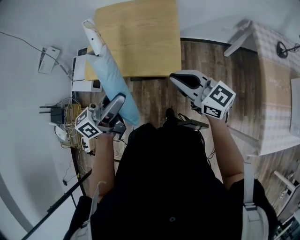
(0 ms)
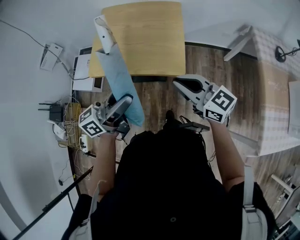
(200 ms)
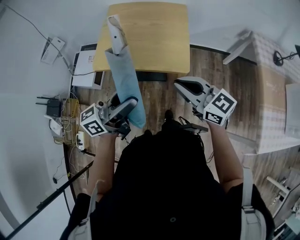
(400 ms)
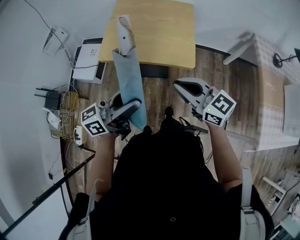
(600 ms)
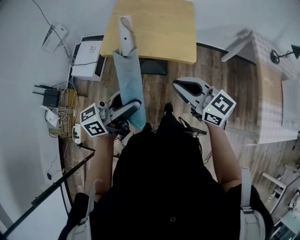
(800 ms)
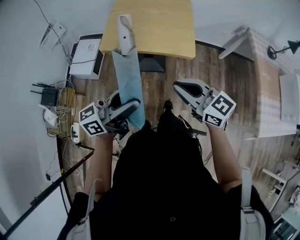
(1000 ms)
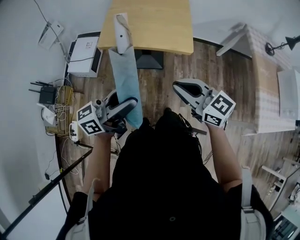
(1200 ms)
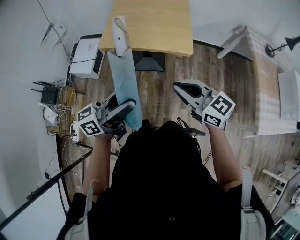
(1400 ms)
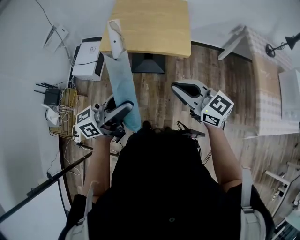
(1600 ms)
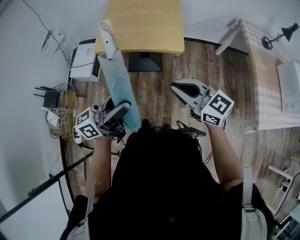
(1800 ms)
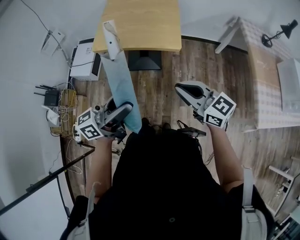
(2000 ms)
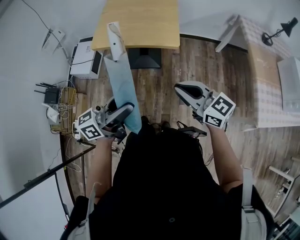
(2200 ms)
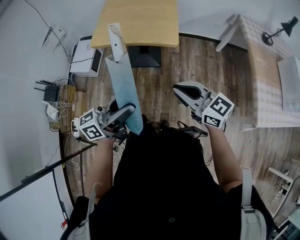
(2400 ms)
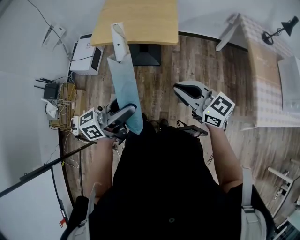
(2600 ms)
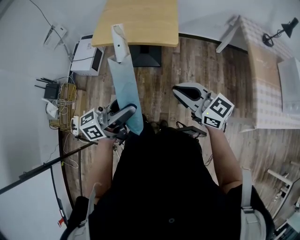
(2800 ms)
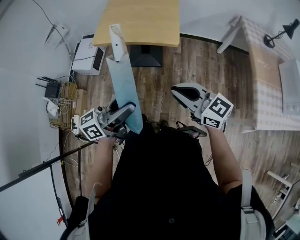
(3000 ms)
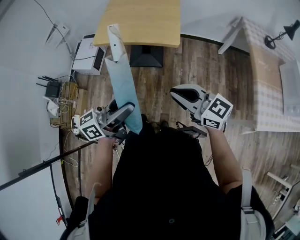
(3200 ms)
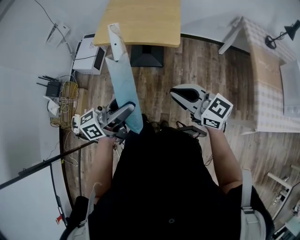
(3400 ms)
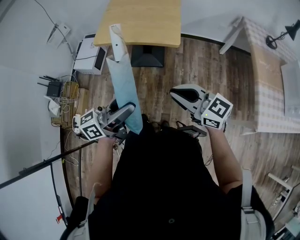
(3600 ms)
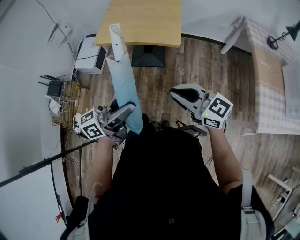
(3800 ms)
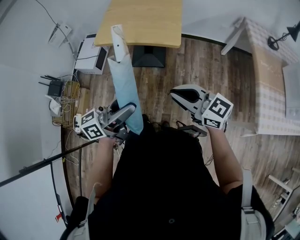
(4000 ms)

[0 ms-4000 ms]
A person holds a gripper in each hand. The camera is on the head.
0 ms to 1400 ms: Both grippers move backward and to the left, some 25 cm.
1400 ms to 2600 ms: Both grippers travel together to the right and backward, about 15 cm.
2600 ms to 4000 ms: The grippers make only small movements.

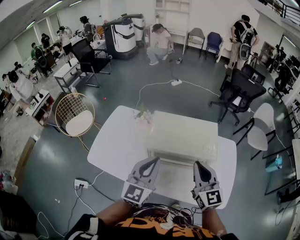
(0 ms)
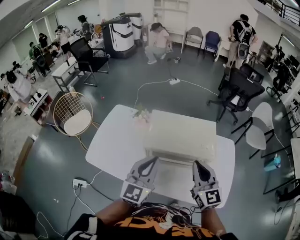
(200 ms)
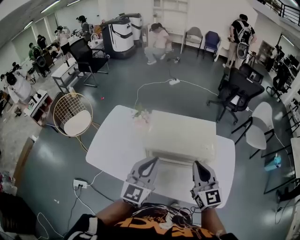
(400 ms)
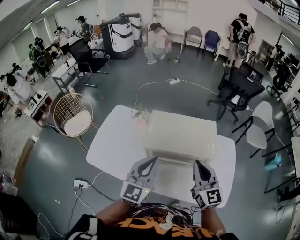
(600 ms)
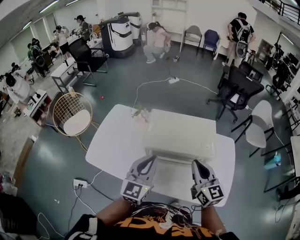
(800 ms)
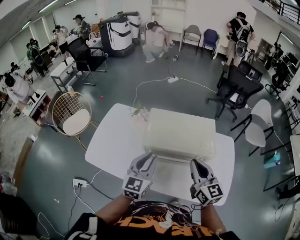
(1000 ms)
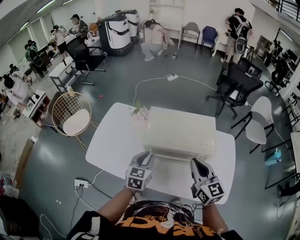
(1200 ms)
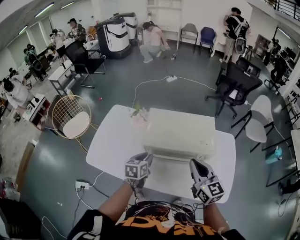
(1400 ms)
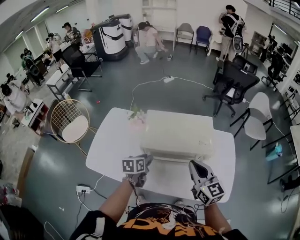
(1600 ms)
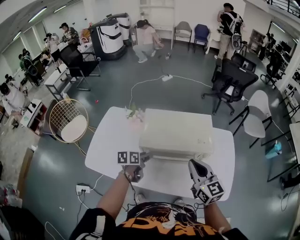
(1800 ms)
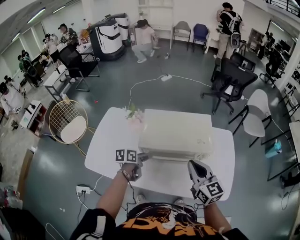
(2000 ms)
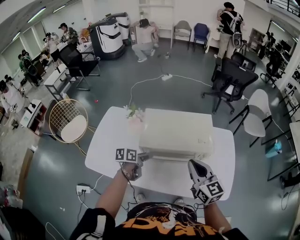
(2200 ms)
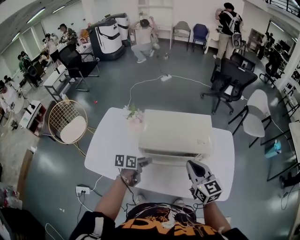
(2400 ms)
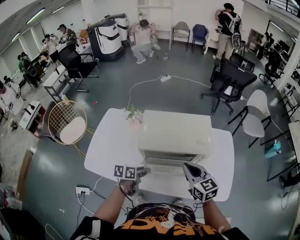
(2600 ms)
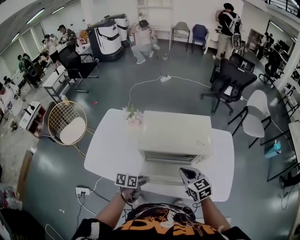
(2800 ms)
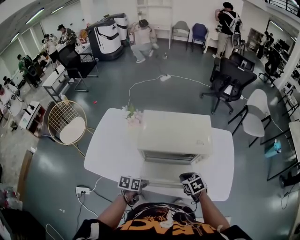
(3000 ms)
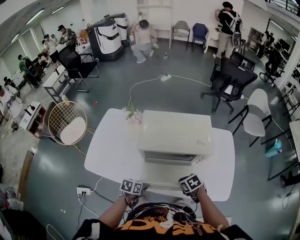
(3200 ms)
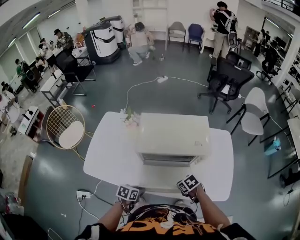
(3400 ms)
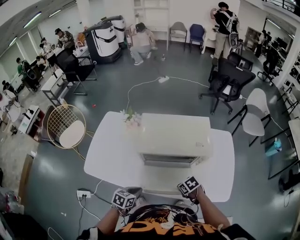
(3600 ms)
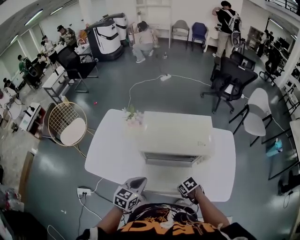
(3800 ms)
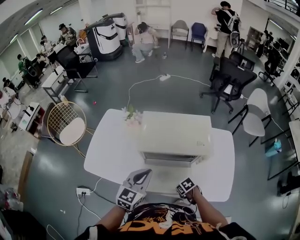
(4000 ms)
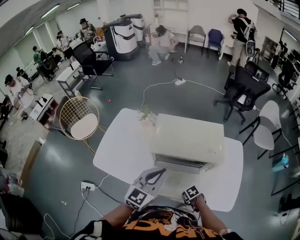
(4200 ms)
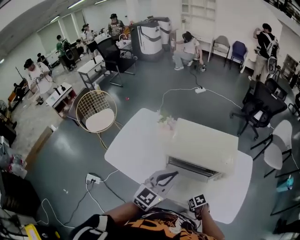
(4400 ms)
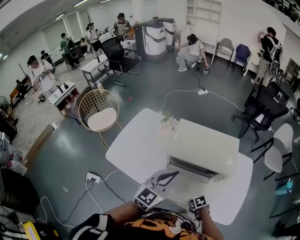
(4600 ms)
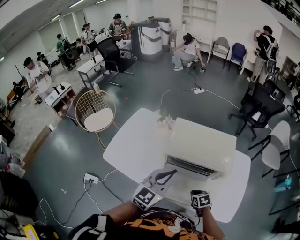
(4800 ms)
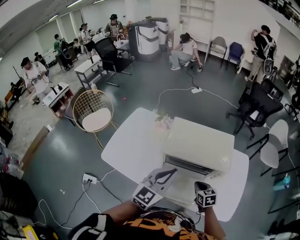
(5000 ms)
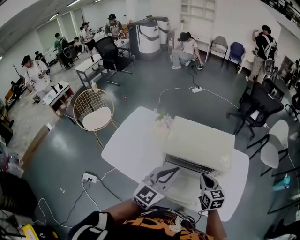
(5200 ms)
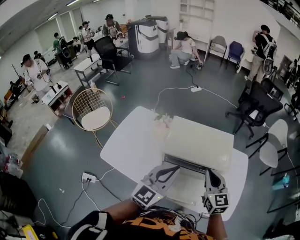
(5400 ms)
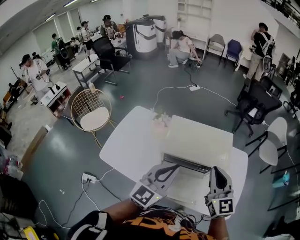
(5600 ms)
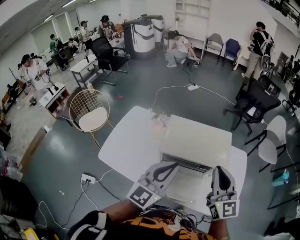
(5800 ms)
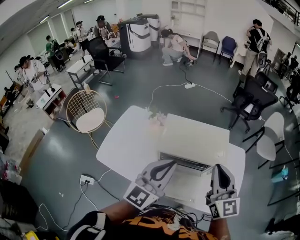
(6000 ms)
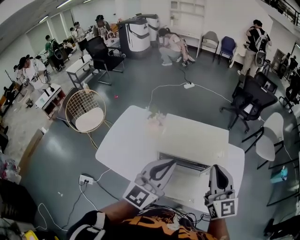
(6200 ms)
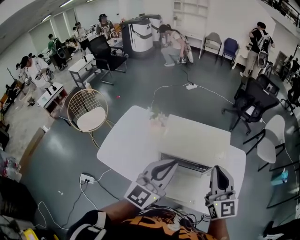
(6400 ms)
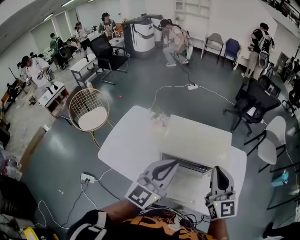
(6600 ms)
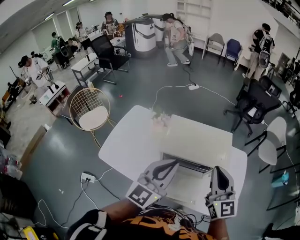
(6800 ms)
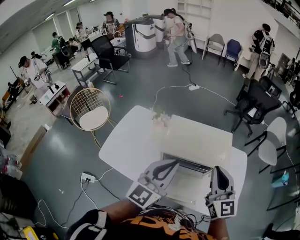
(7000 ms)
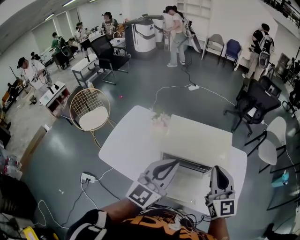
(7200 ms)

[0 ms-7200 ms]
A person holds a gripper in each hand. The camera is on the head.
0 ms to 1400 ms: The left gripper goes some 20 cm downward, points its fingers approximately 40 degrees further downward, and opens.
1400 ms to 2800 ms: The left gripper is displaced downward and backward by some 15 cm, swivels some 30 degrees, and opens, then closes once more. Meanwhile the right gripper shifts some 10 cm downward, and changes its angle by about 20 degrees.
2800 ms to 4400 ms: The left gripper shifts some 25 cm upward, tips its fingers upward by about 30 degrees, and closes. Meanwhile the right gripper moves downward, about 25 cm, and tilts its fingers some 40 degrees downward.
4400 ms to 5800 ms: The right gripper shifts roughly 50 cm upward, and angles its fingers upward, by about 70 degrees; the left gripper shifts roughly 10 cm upward.
5800 ms to 7200 ms: The grippers move only a little.

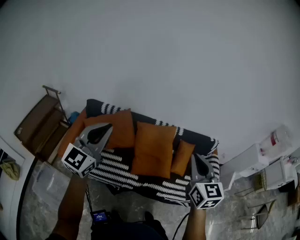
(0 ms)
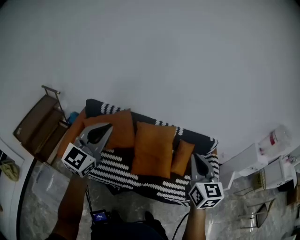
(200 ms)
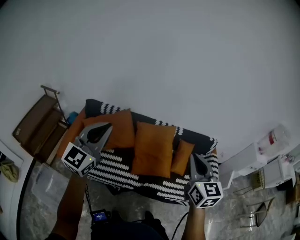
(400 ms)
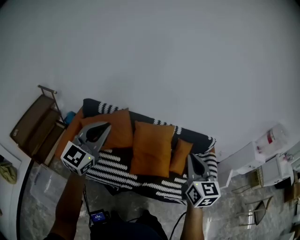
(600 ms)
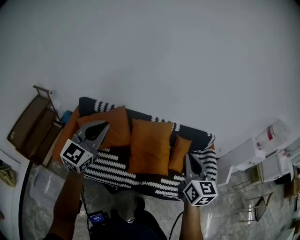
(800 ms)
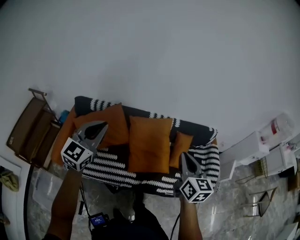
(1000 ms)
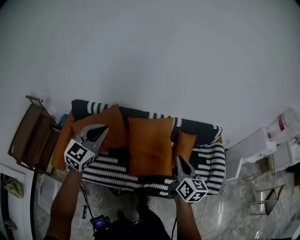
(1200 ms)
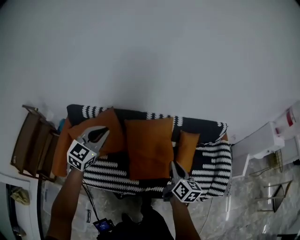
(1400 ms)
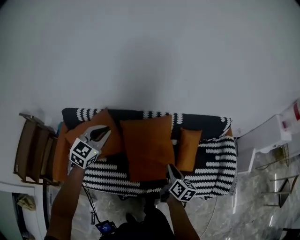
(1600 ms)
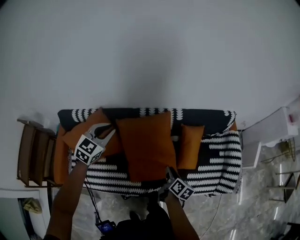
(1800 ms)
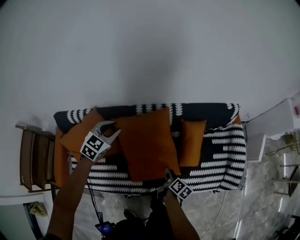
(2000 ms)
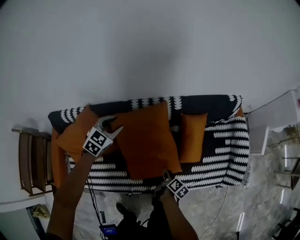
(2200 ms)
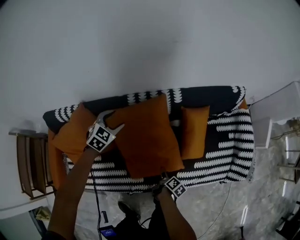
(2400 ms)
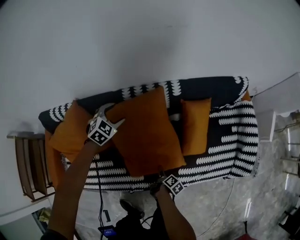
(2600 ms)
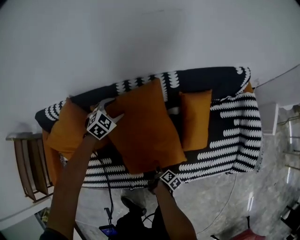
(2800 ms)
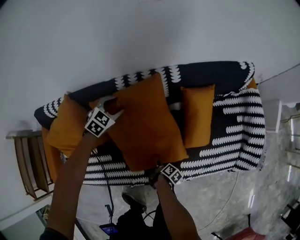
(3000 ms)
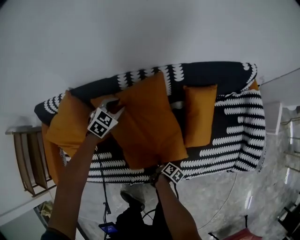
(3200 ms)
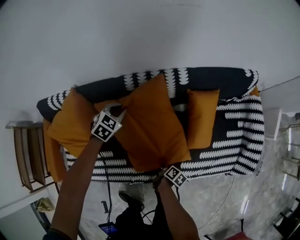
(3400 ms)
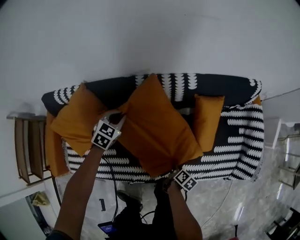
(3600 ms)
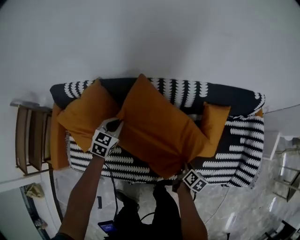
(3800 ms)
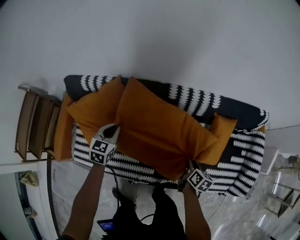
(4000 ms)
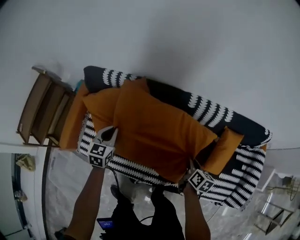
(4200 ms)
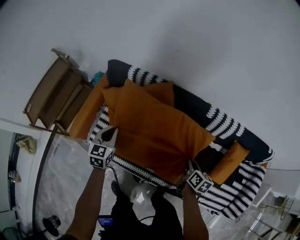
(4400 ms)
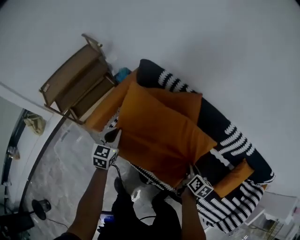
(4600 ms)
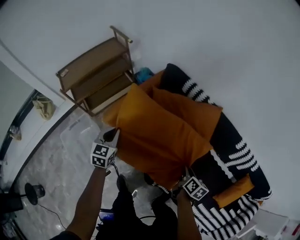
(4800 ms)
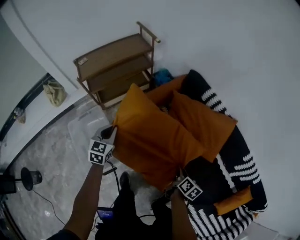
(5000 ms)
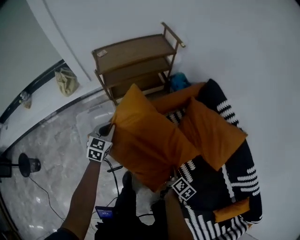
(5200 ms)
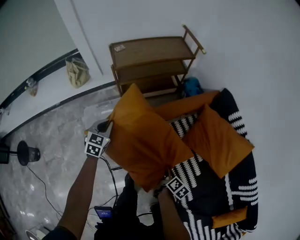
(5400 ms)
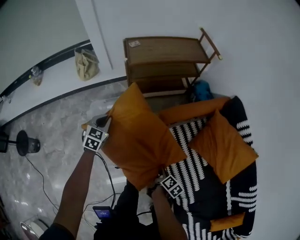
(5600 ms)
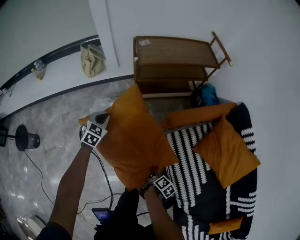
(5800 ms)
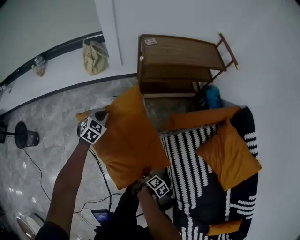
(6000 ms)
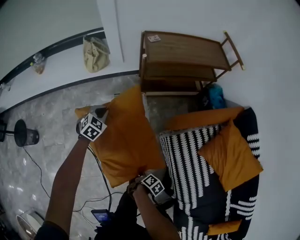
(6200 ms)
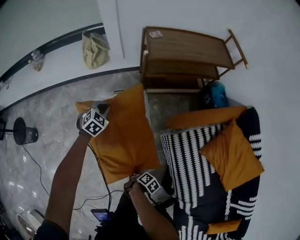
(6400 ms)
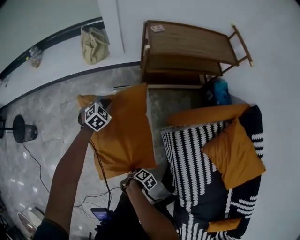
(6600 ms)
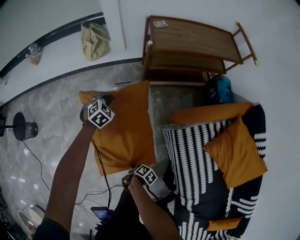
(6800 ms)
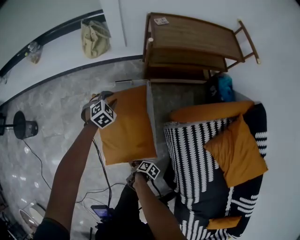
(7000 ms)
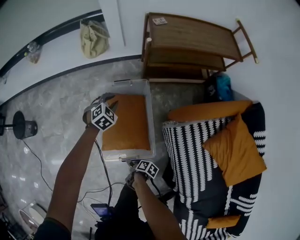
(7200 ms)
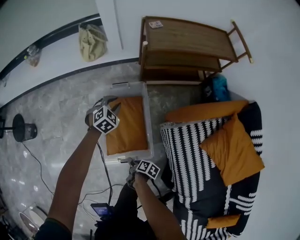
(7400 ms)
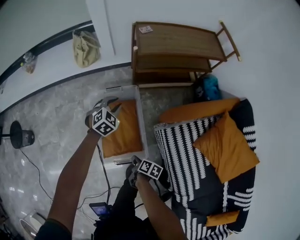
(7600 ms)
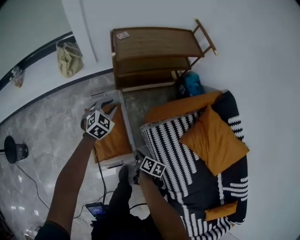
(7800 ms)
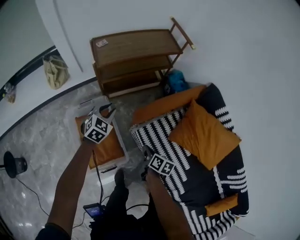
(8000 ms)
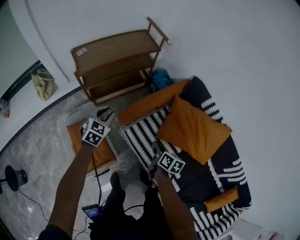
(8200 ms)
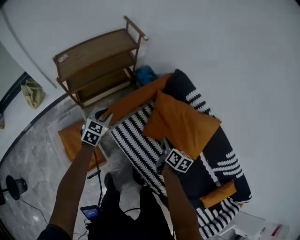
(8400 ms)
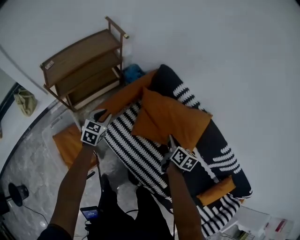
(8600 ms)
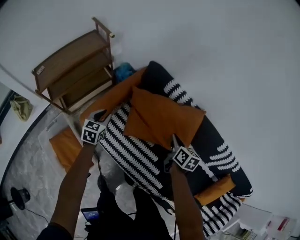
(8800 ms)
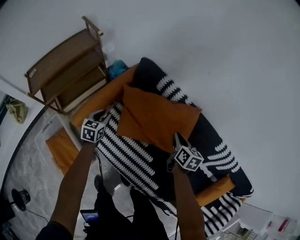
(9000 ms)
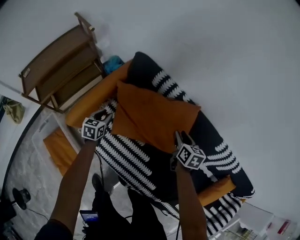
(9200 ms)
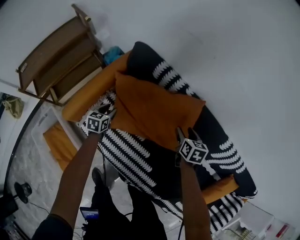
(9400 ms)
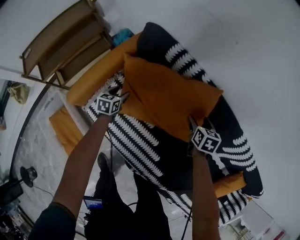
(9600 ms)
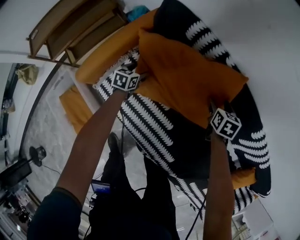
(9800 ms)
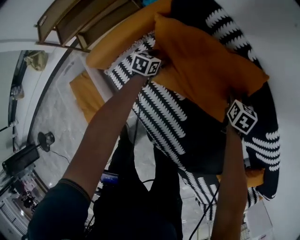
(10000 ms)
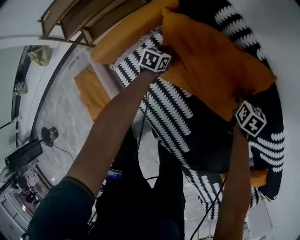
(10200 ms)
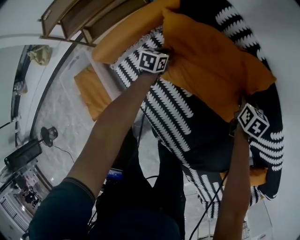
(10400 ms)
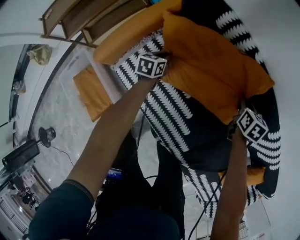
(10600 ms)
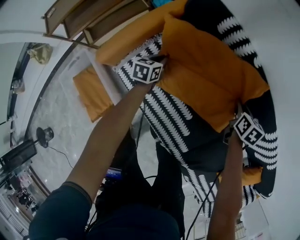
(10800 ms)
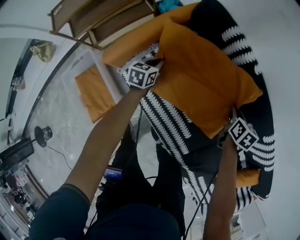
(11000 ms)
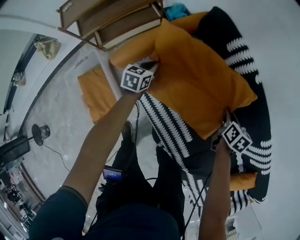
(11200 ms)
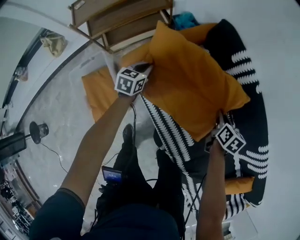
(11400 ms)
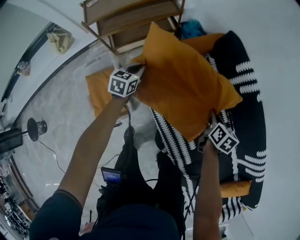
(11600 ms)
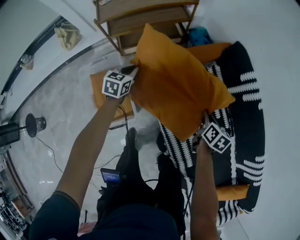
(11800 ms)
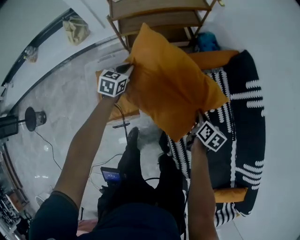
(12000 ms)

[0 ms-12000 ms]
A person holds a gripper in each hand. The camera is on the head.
0 ms to 1600 ms: The left gripper heads forward and downward, covering roughly 40 cm, and angles its fingers downward, by approximately 30 degrees. The right gripper travels downward and forward by approximately 40 cm, and rotates around the line of its fingers by about 50 degrees, clockwise from behind.
1600 ms to 3000 ms: The right gripper shifts approximately 50 cm downward, twists roughly 50 degrees clockwise, seen from behind, and opens. Meanwhile the left gripper shifts some 40 cm downward and forward, turns by approximately 30 degrees, and opens its fingers.
3000 ms to 4400 ms: The left gripper moves some 50 cm, rotates approximately 70 degrees, and closes its fingers. Meanwhile the right gripper shifts about 30 cm upward, twists approximately 60 degrees counterclockwise, seen from behind, and closes its fingers.
4400 ms to 6000 ms: The pair of grippers is taken about 80 cm. The left gripper rotates approximately 40 degrees. Meanwhile the right gripper turns by some 40 degrees.
6000 ms to 7600 ms: The left gripper reaches some 10 cm downward, then returns. The right gripper goes downward and returns, roughly 10 cm each way, changes its angle by some 20 degrees, and opens, then closes once more.
7600 ms to 9000 ms: The two grippers travel together, about 70 cm. The left gripper turns by about 30 degrees. The right gripper rotates about 50 degrees.
9000 ms to 10400 ms: The left gripper shifts some 25 cm downward and to the right, and opens, then closes again. The right gripper heads downward, to the right and forward, covering approximately 20 cm, rotates roughly 20 degrees, and opens, then closes once more.
10400 ms to 12000 ms: Both grippers are carried roughly 50 cm. The right gripper changes its angle by about 20 degrees. The left gripper swivels approximately 20 degrees.
